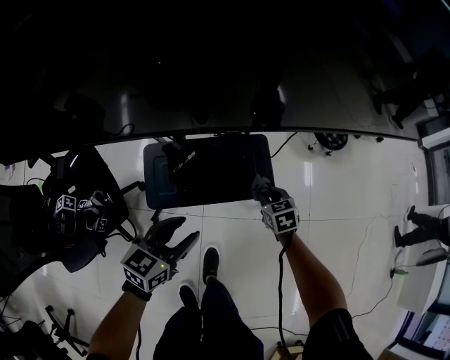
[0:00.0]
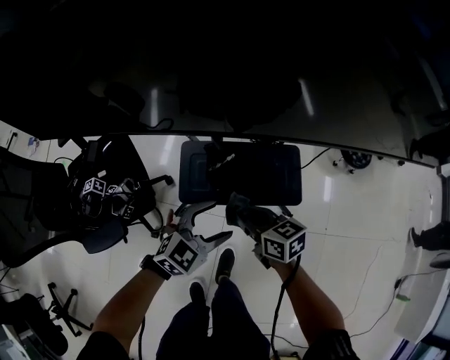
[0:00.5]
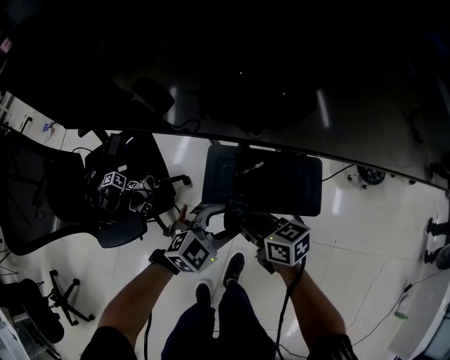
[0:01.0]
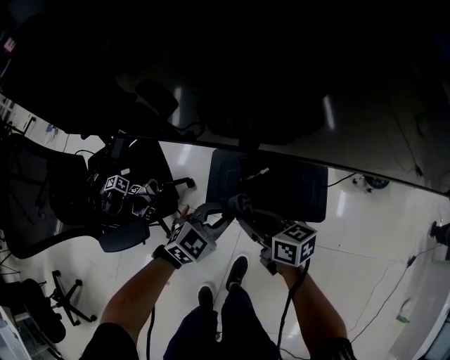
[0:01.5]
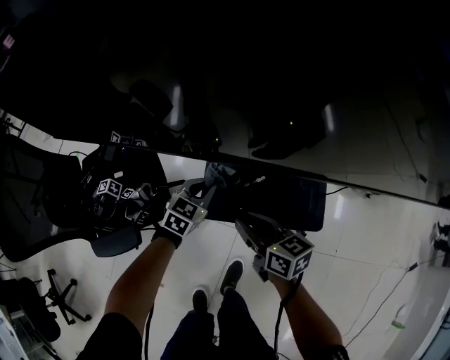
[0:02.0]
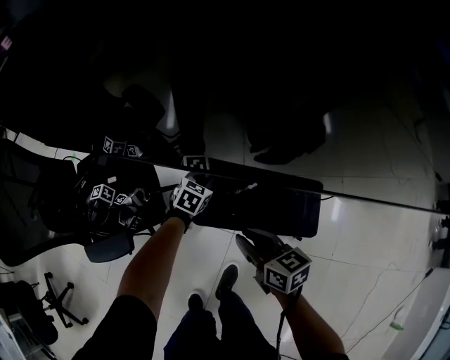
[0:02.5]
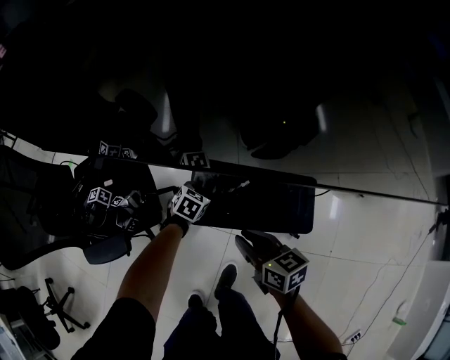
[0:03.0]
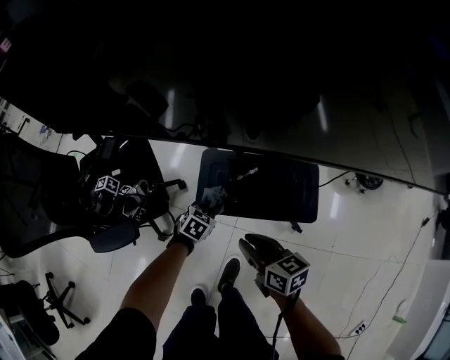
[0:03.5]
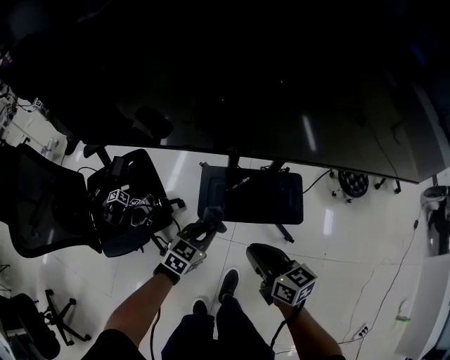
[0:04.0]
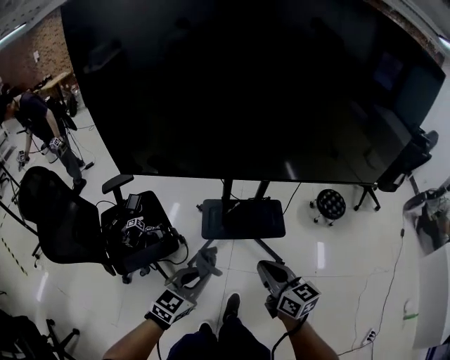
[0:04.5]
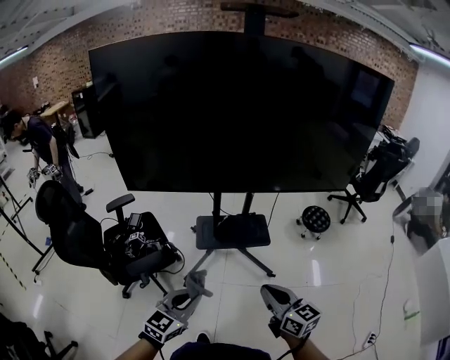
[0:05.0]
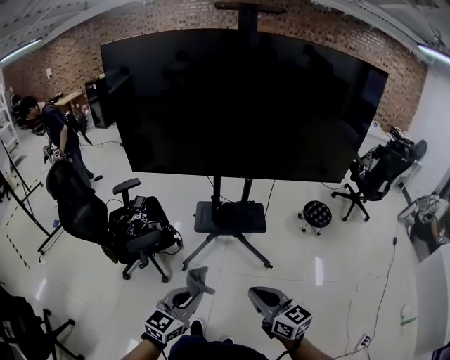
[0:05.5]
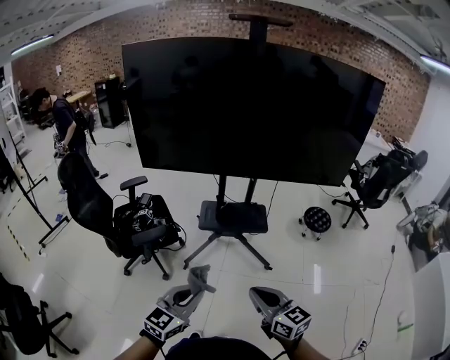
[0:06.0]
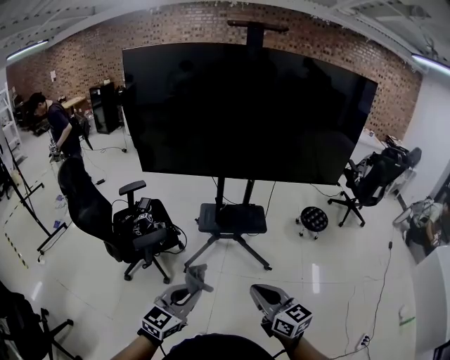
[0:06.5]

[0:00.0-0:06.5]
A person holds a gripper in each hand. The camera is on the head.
0:00.0 to 0:02.0: The right gripper moves some 30 cm, and turns by some 40 degrees. Meanwhile the left gripper changes place by some 20 cm, turns by some 30 degrees, and closes up.
0:02.0 to 0:04.5: The two grippers go roughly 40 cm backward and upward. The right gripper rotates roughly 30 degrees; the left gripper changes its angle by about 20 degrees.
0:04.5 to 0:06.5: The grippers both shift backward by some 30 cm.

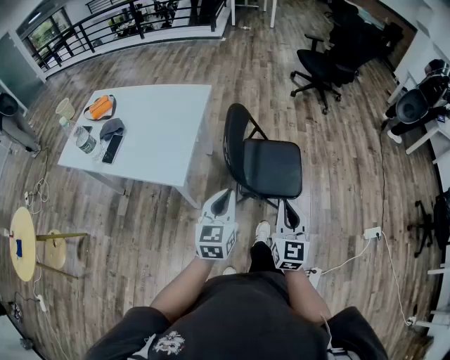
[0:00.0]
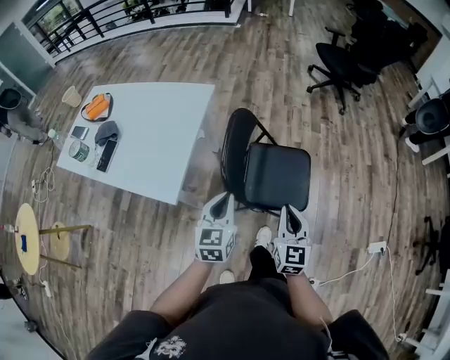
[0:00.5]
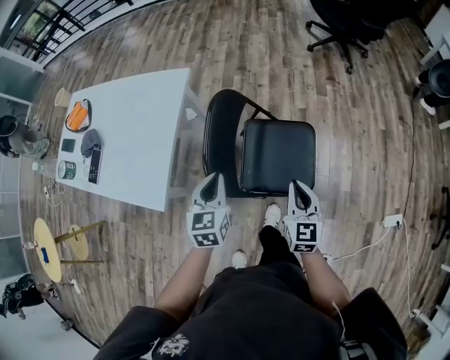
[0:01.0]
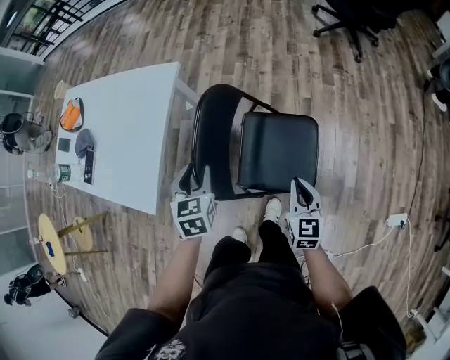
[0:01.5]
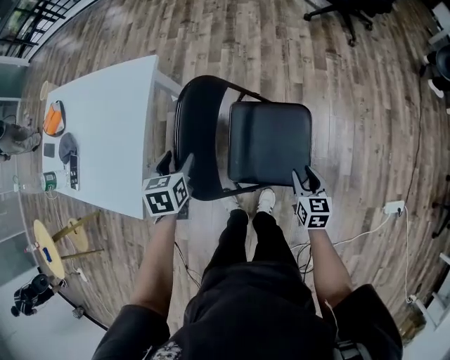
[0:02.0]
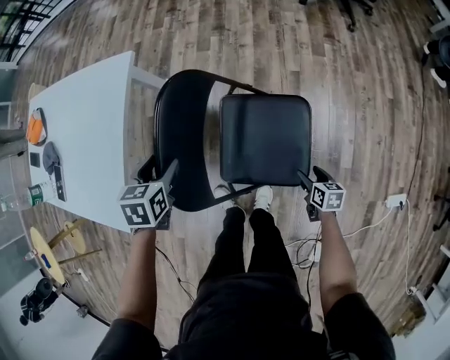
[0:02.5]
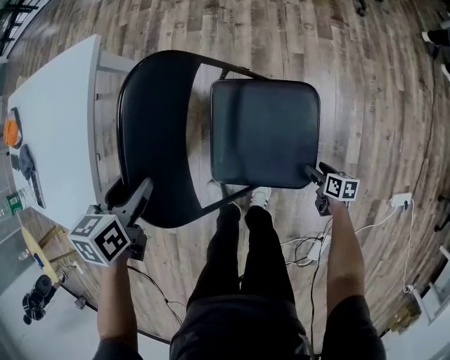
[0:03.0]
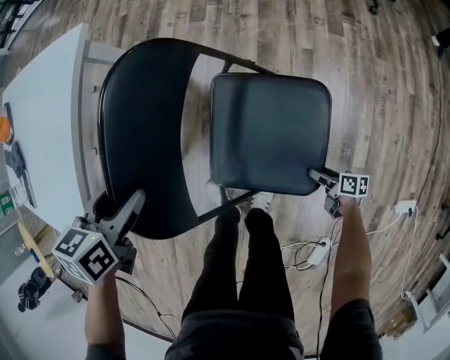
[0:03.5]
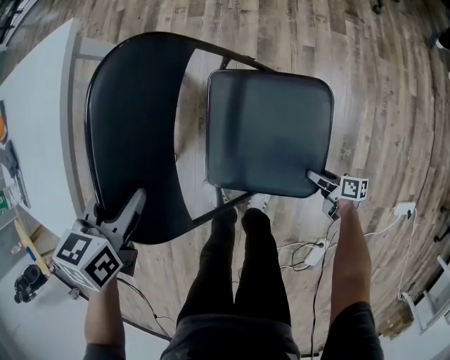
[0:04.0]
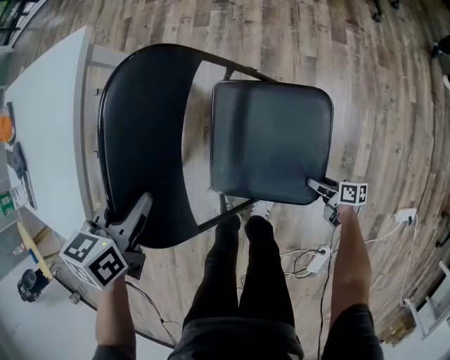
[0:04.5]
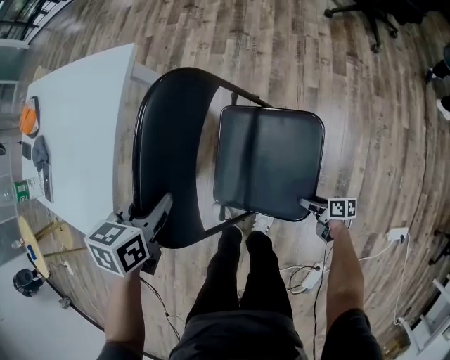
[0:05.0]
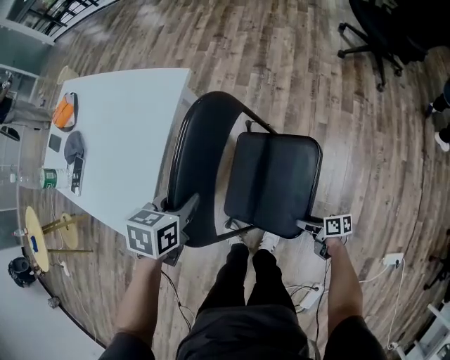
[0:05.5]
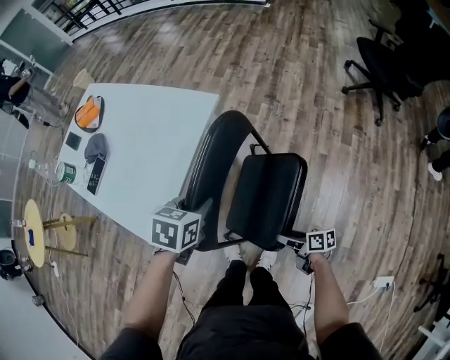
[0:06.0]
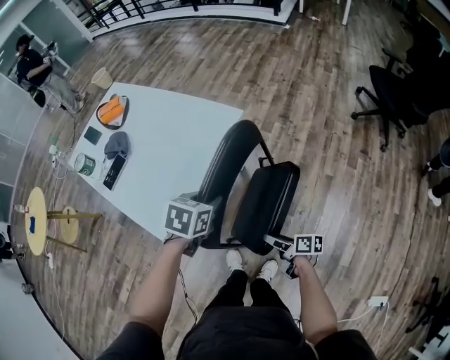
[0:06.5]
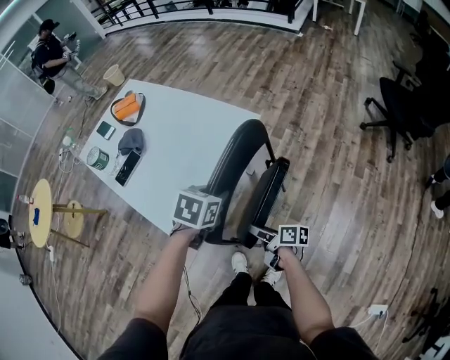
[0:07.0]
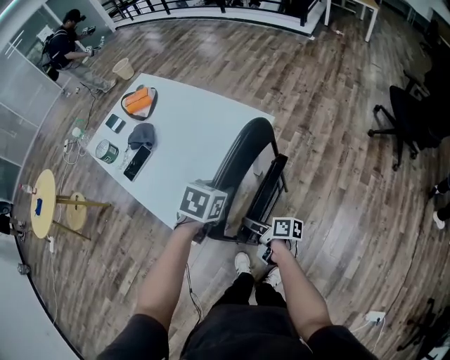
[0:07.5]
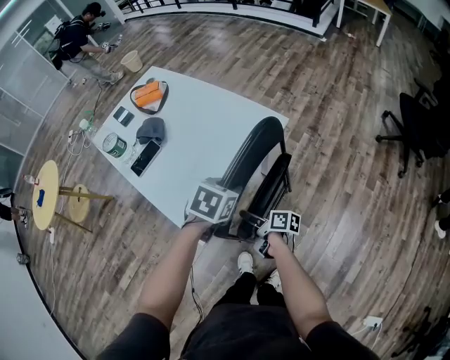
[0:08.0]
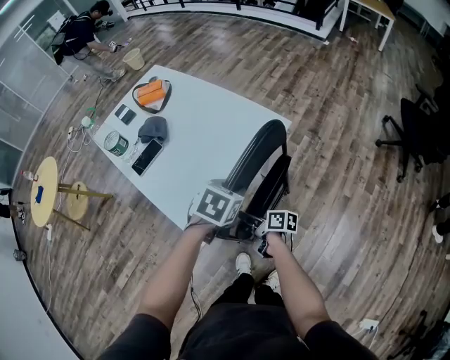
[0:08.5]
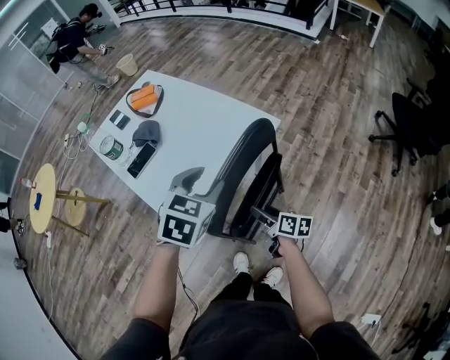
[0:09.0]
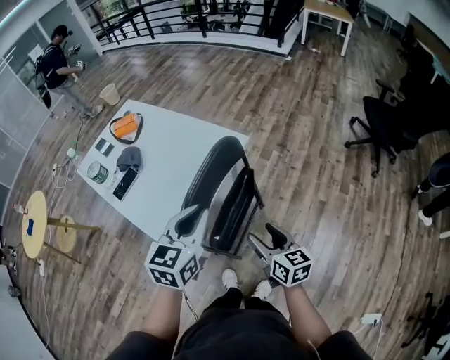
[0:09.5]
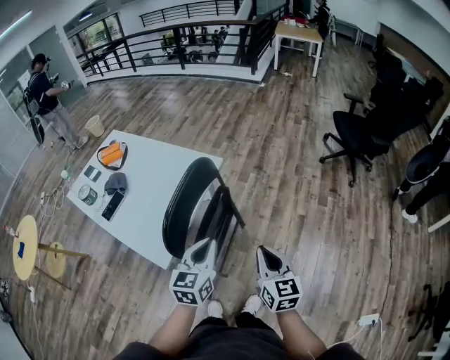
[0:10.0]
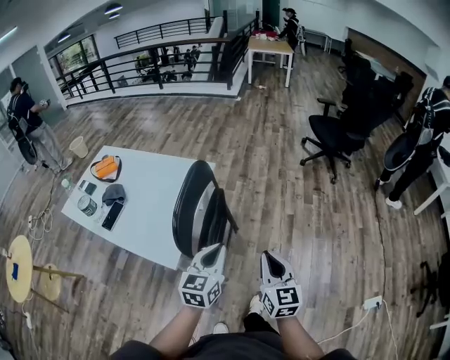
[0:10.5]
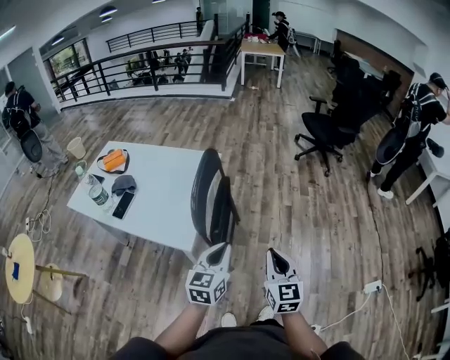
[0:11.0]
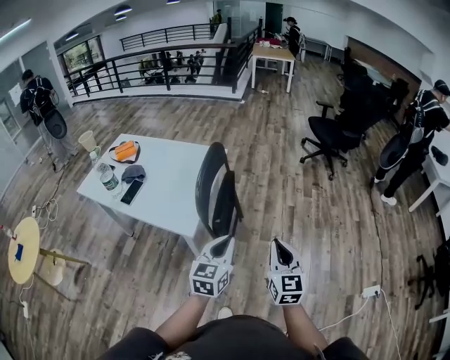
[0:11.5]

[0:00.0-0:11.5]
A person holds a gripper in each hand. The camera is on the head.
0:00.0 to 0:02.0: The right gripper travels forward, downward and to the right by approximately 50 cm, points its fingers some 30 degrees further downward, and opens; the left gripper heads forward and downward, covering about 40 cm, tips its fingers downward by approximately 40 degrees, and opens its fingers.
0:02.0 to 0:04.0: The left gripper heads downward, covering about 10 cm; the right gripper shifts approximately 35 cm downward, rotates some 60 degrees, and opens up.
0:04.0 to 0:06.0: The left gripper moves upward, some 15 cm, and closes. Meanwhile the right gripper travels upward and to the left by some 35 cm, and rotates some 20 degrees.
0:06.0 to 0:07.5: The left gripper moves to the left and forward, approximately 10 cm; the right gripper heads to the left, forward and upward, covering some 30 cm.
0:07.5 to 0:09.5: The left gripper goes some 15 cm upward and backward, tilts its fingers some 40 degrees upward, and opens and closes again, while the right gripper moves upward and to the right, approximately 20 cm, and rotates around the line of its fingers by approximately 50 degrees, counterclockwise from behind.
0:09.5 to 0:11.5: The right gripper moves roughly 35 cm, rotates approximately 50 degrees, and closes, while the left gripper ends up approximately 30 cm from where it was.

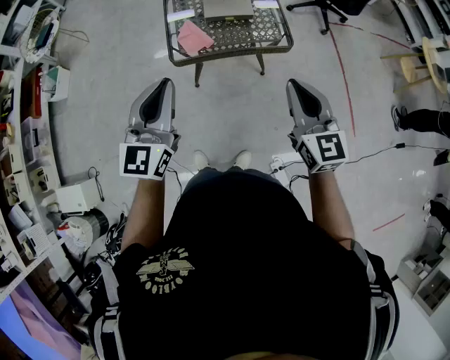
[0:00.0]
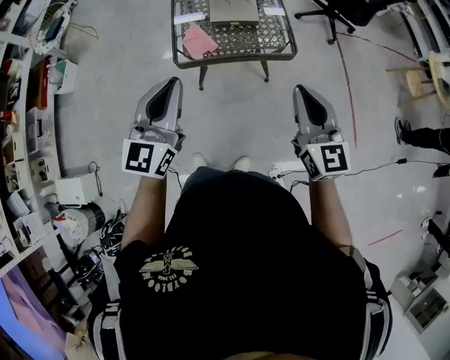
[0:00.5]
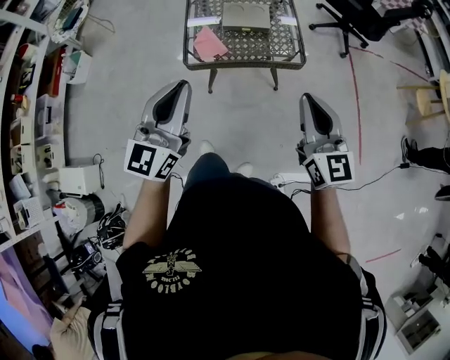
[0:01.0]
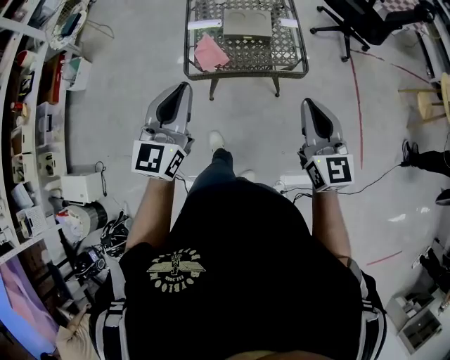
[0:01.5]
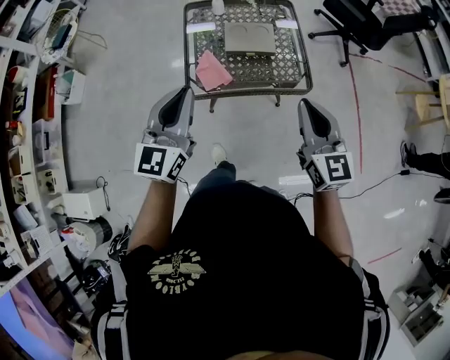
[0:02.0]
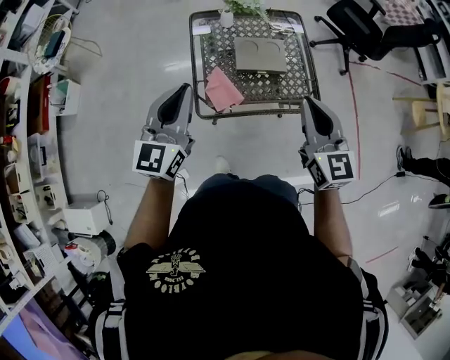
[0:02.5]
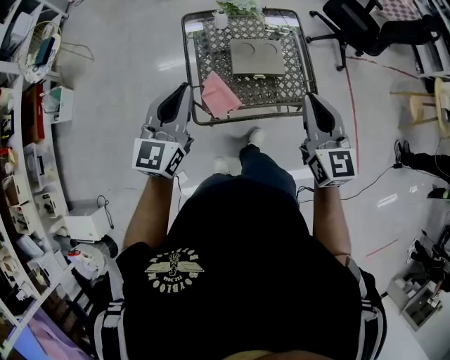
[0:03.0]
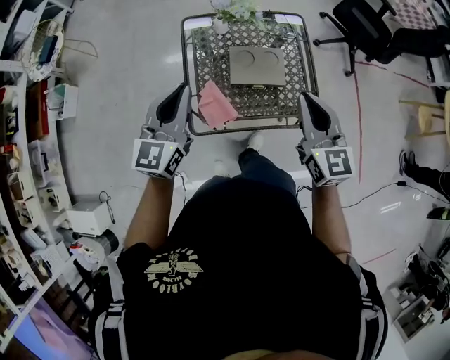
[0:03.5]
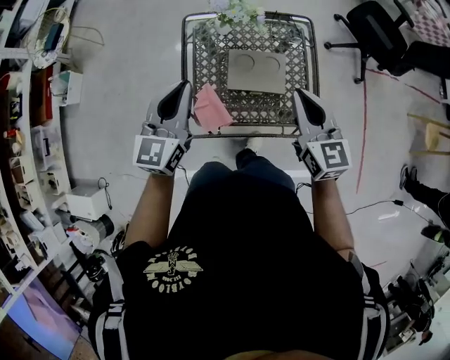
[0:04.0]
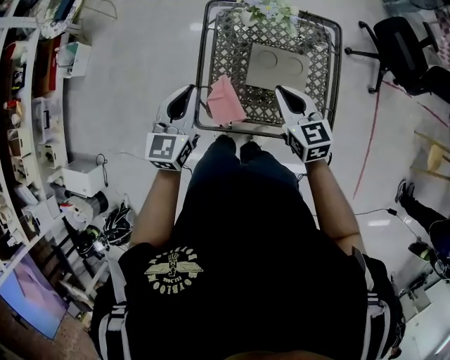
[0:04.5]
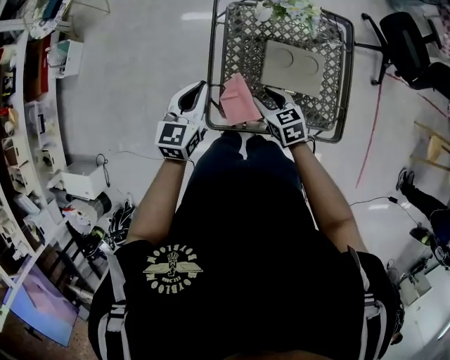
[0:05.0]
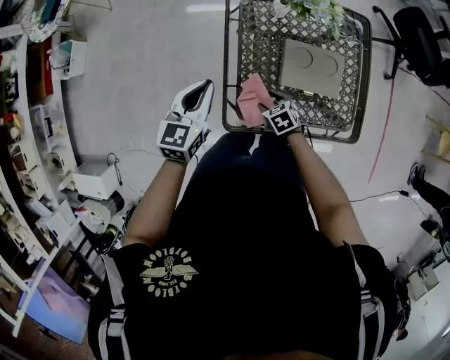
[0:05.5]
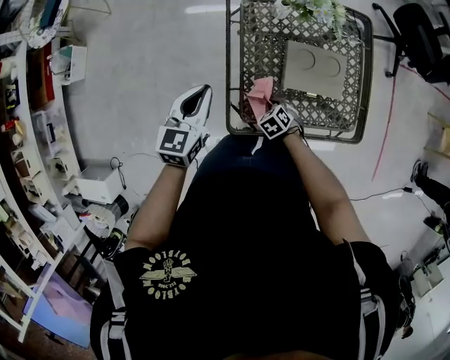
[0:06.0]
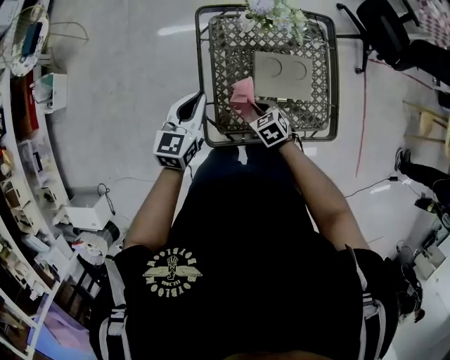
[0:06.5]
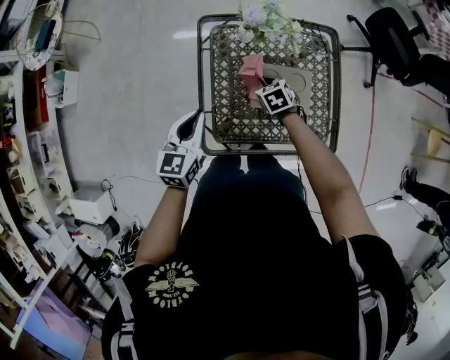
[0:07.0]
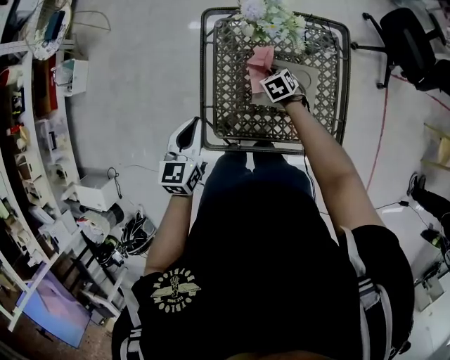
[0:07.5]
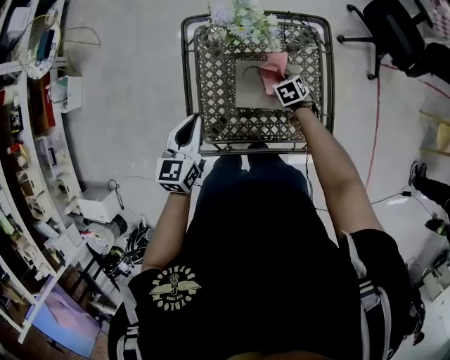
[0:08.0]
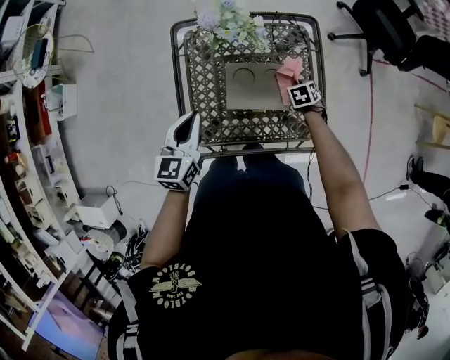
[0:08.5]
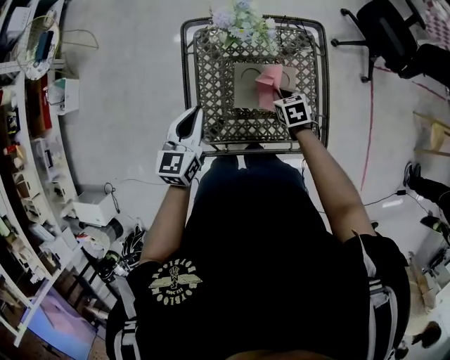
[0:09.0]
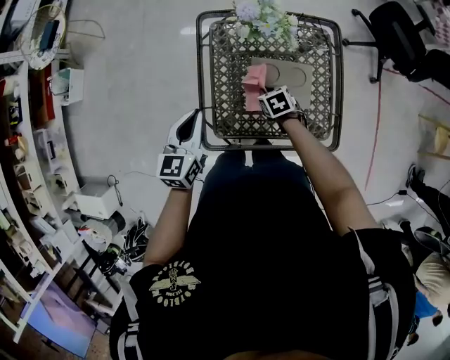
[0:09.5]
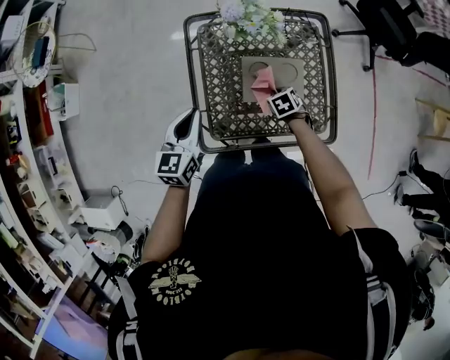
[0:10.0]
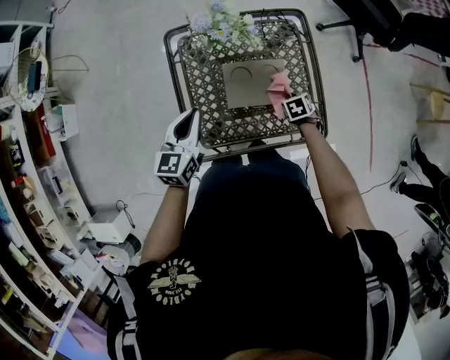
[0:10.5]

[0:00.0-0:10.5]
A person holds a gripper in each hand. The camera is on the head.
0:00.0 to 0:02.0: Both grippers move forward, approximately 15 cm.
0:02.0 to 0:04.0: The grippers both shift forward by about 30 cm.
0:04.0 to 0:06.5: The left gripper travels downward by approximately 15 cm, and swivels about 20 degrees; the right gripper heads downward, covering roughly 30 cm, tilts its fingers about 50 degrees downward, and opens and closes again.
0:06.5 to 0:08.5: The right gripper moves to the right and forward, about 30 cm, and turns by roughly 20 degrees, while the left gripper heads to the right, covering approximately 10 cm.
0:08.5 to 0:10.5: The right gripper goes upward and returns, some 10 cm each way.
